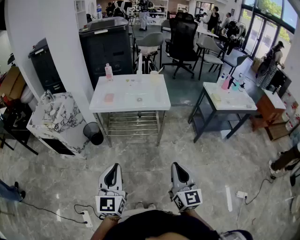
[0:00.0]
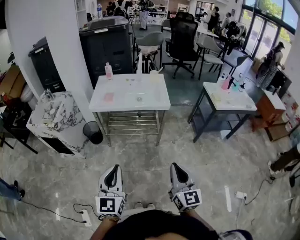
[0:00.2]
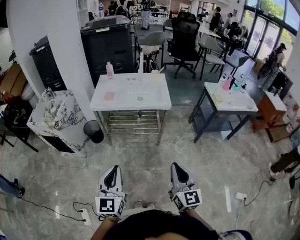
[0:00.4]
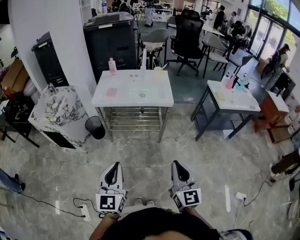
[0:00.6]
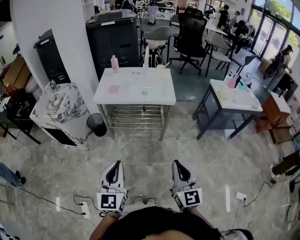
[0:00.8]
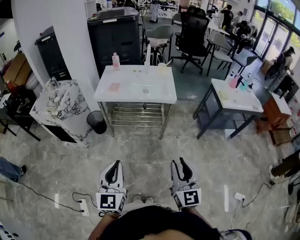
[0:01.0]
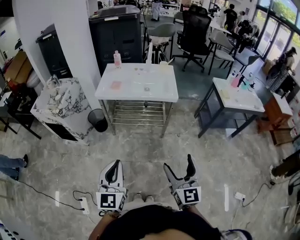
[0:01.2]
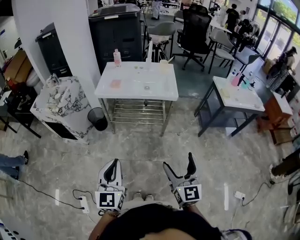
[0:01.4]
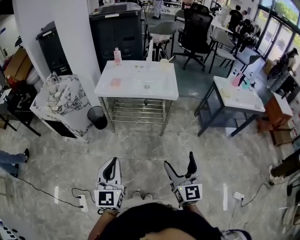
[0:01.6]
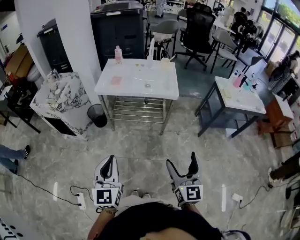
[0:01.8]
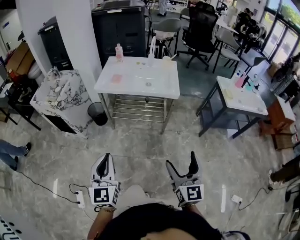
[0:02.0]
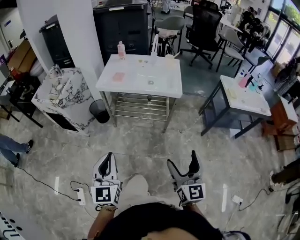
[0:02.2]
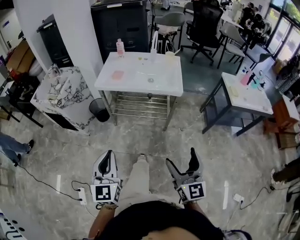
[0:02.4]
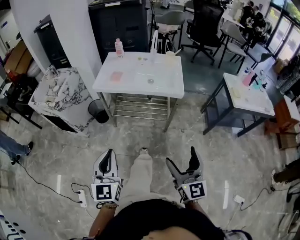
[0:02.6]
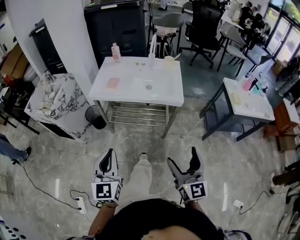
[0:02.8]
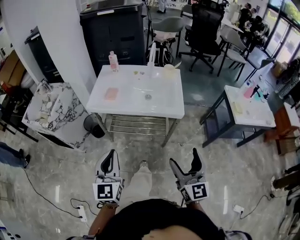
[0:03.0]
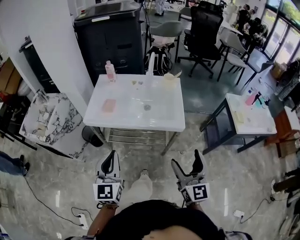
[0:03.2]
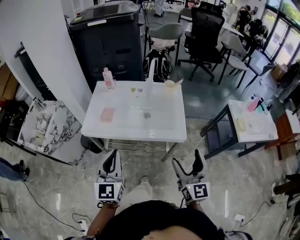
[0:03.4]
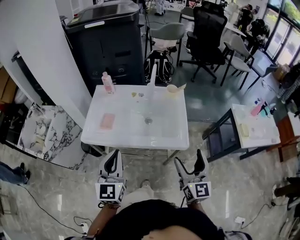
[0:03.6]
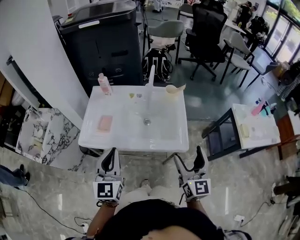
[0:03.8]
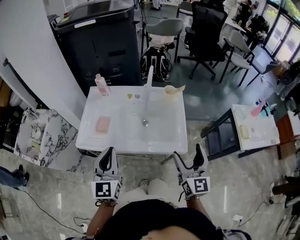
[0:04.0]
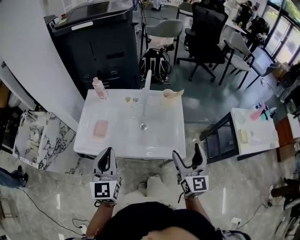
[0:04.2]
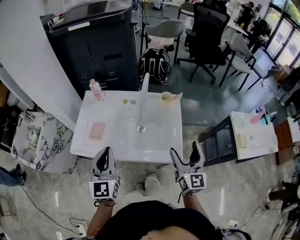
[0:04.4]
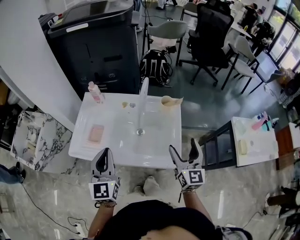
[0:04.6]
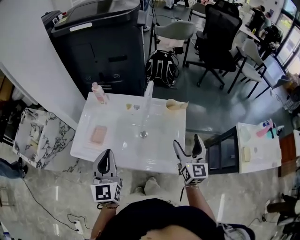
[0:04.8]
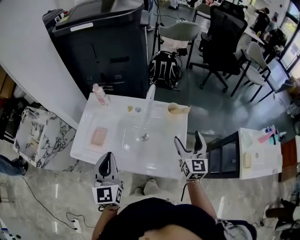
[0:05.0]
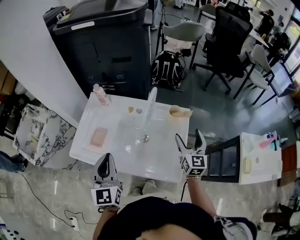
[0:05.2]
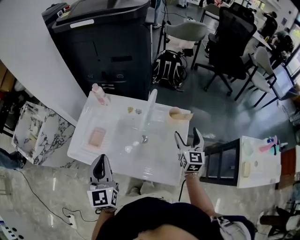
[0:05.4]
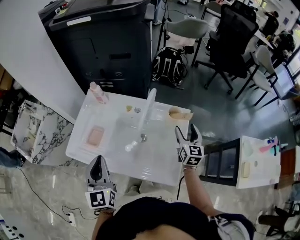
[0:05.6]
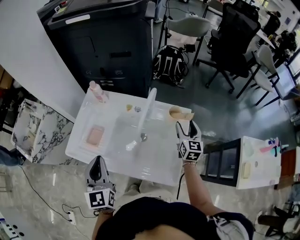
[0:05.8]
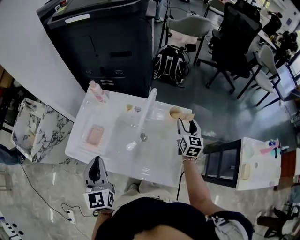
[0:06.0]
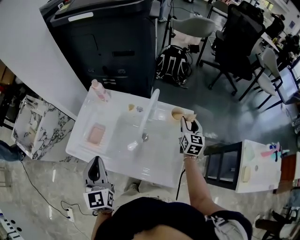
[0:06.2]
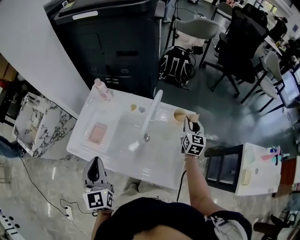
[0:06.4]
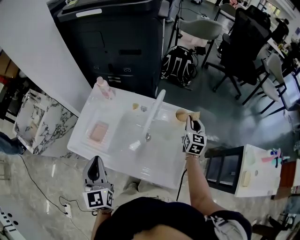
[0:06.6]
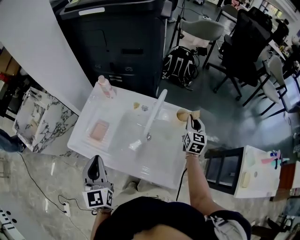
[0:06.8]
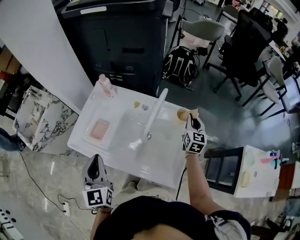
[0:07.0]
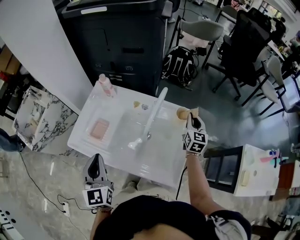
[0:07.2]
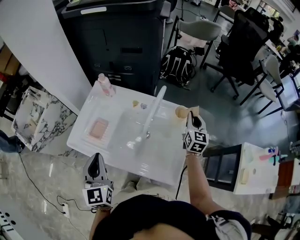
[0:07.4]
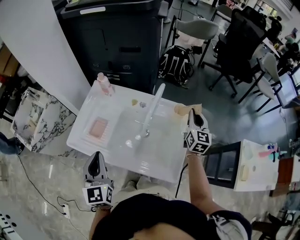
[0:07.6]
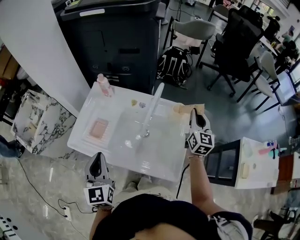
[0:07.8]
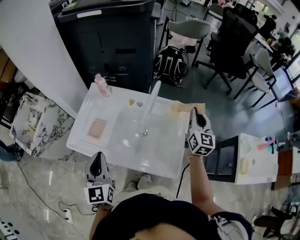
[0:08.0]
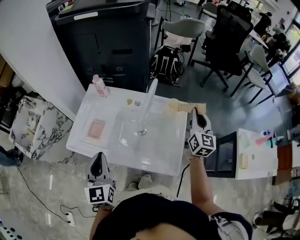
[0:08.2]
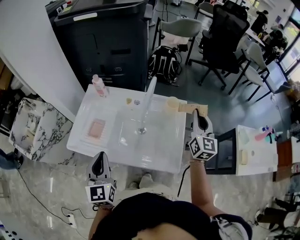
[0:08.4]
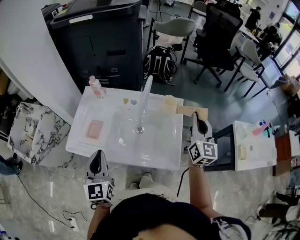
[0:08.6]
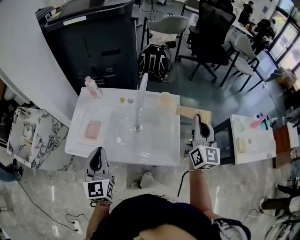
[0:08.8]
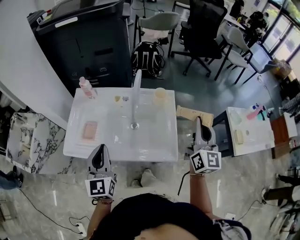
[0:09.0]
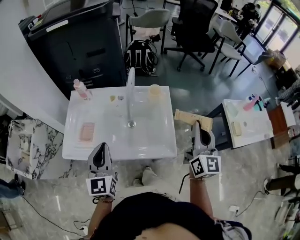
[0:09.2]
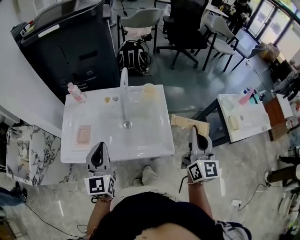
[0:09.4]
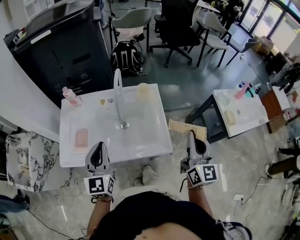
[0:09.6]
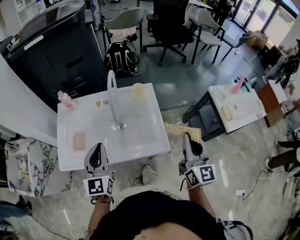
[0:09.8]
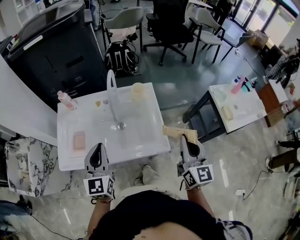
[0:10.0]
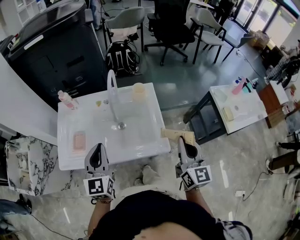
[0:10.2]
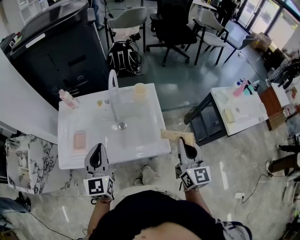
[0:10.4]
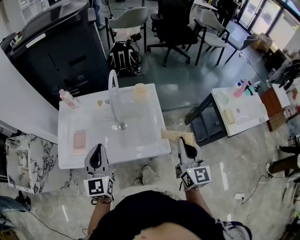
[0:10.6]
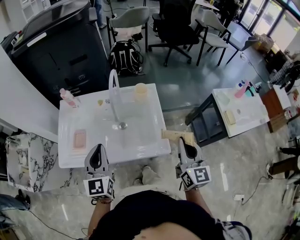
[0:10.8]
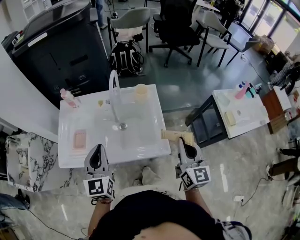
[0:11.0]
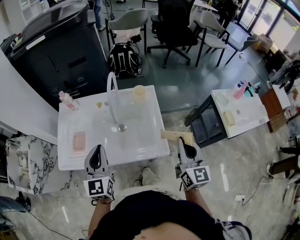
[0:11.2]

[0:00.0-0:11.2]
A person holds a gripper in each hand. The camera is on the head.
0:00.0 to 0:01.6: The right gripper opens its fingers.
0:01.6 to 0:03.2: Both grippers move forward, roughly 30 cm.
0:03.2 to 0:04.8: The grippers both shift forward by about 35 cm.
0:04.8 to 0:06.4: The right gripper goes some 25 cm forward and downward, and closes up.
0:06.4 to 0:08.0: The right gripper heads upward and backward, covering approximately 15 cm.
0:08.0 to 0:09.6: The right gripper is displaced backward by some 30 cm. The left gripper ends up approximately 5 cm from where it was, and turns by approximately 30 degrees.
0:09.6 to 0:11.2: The grippers make only small movements.

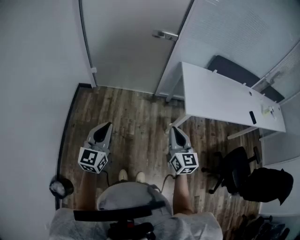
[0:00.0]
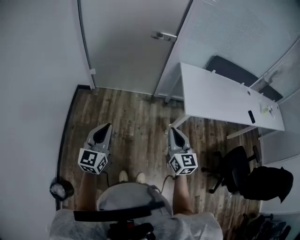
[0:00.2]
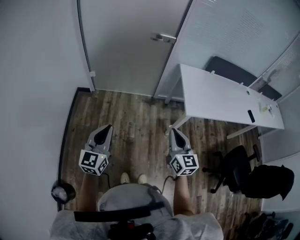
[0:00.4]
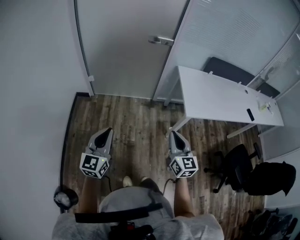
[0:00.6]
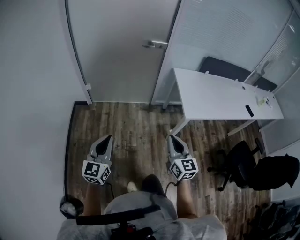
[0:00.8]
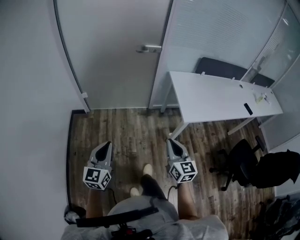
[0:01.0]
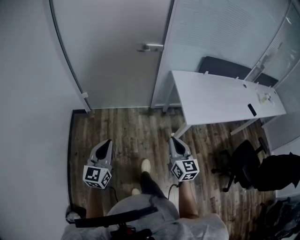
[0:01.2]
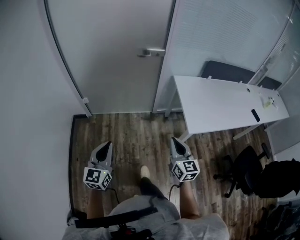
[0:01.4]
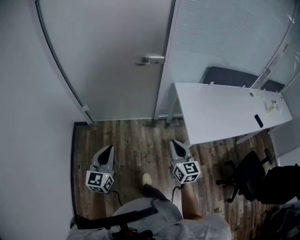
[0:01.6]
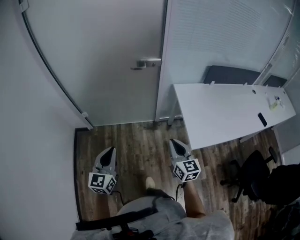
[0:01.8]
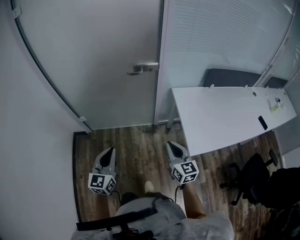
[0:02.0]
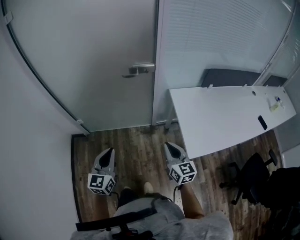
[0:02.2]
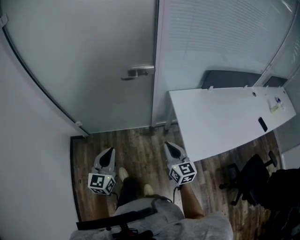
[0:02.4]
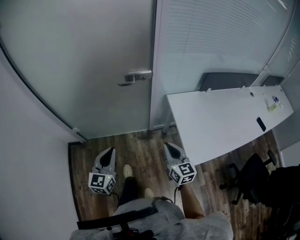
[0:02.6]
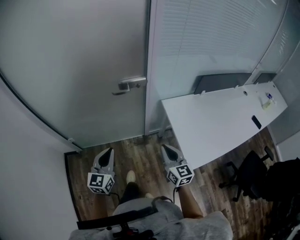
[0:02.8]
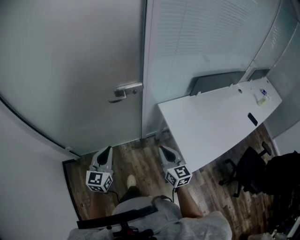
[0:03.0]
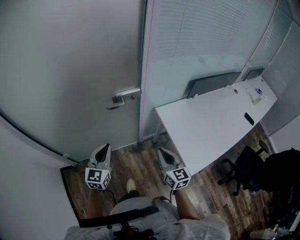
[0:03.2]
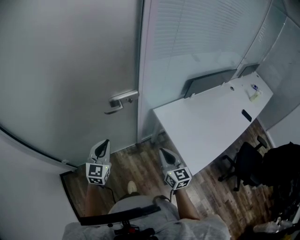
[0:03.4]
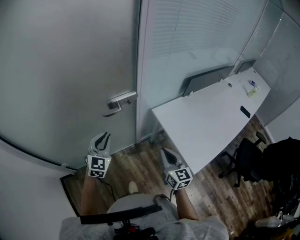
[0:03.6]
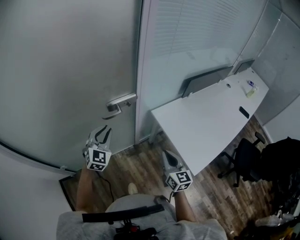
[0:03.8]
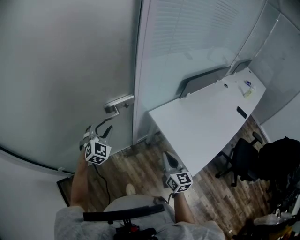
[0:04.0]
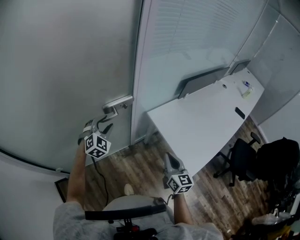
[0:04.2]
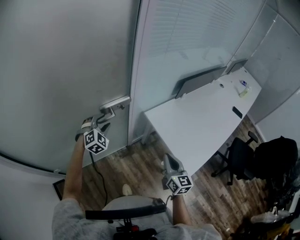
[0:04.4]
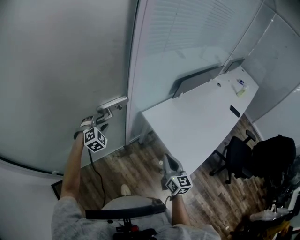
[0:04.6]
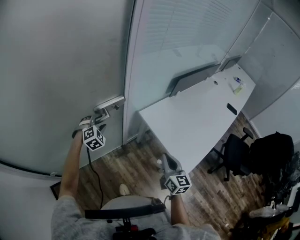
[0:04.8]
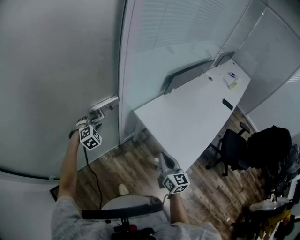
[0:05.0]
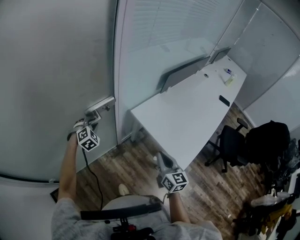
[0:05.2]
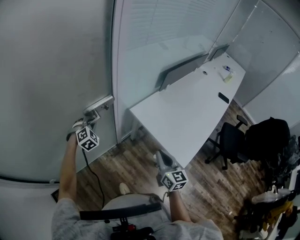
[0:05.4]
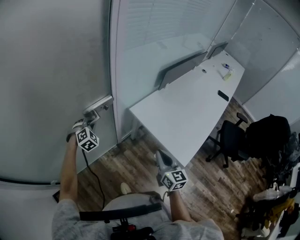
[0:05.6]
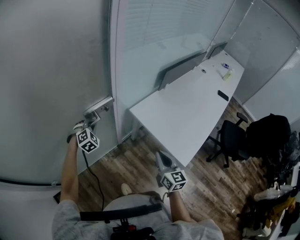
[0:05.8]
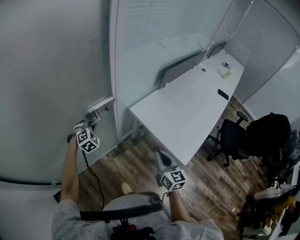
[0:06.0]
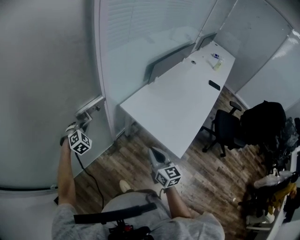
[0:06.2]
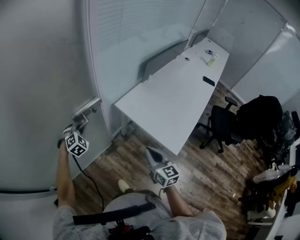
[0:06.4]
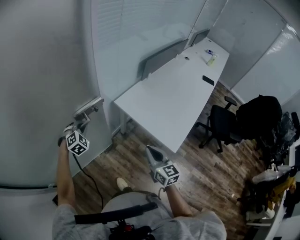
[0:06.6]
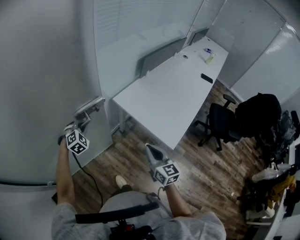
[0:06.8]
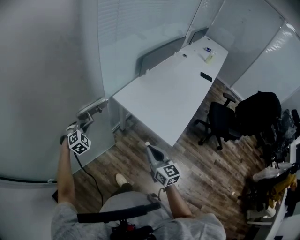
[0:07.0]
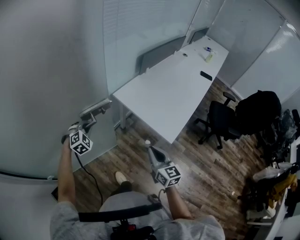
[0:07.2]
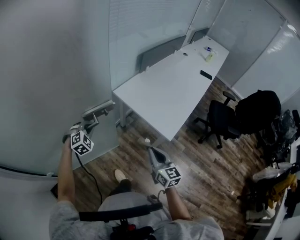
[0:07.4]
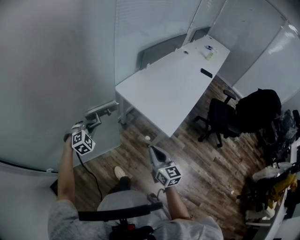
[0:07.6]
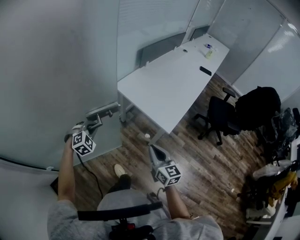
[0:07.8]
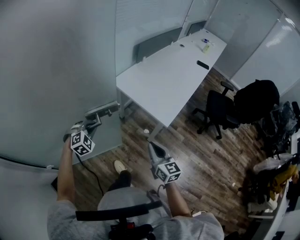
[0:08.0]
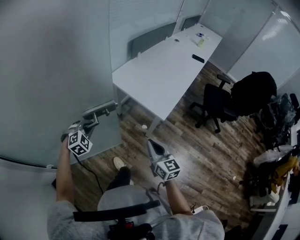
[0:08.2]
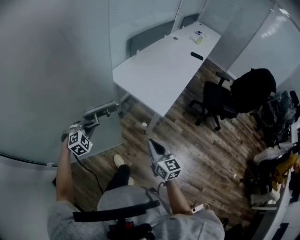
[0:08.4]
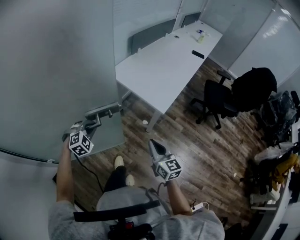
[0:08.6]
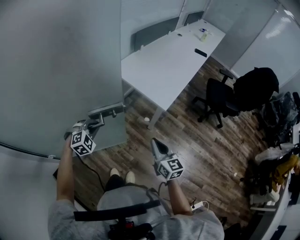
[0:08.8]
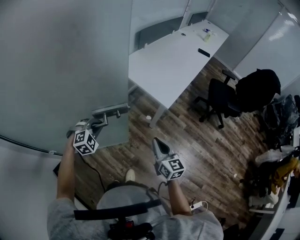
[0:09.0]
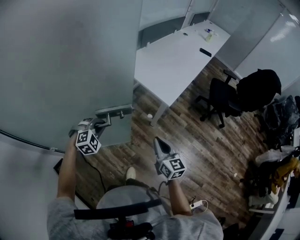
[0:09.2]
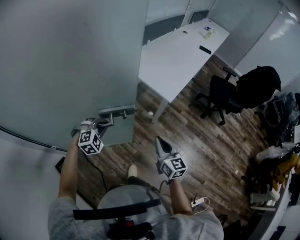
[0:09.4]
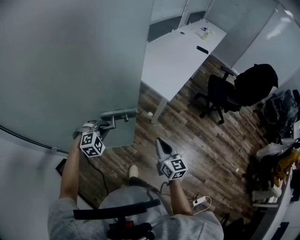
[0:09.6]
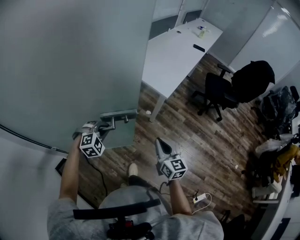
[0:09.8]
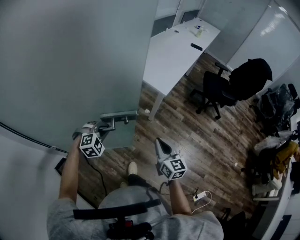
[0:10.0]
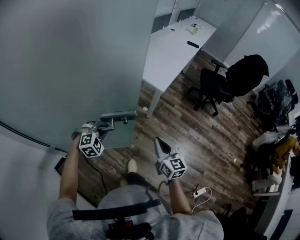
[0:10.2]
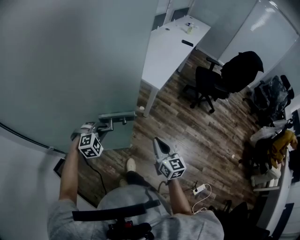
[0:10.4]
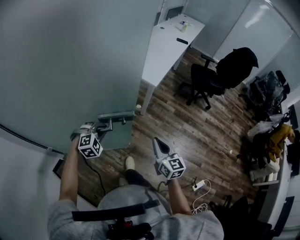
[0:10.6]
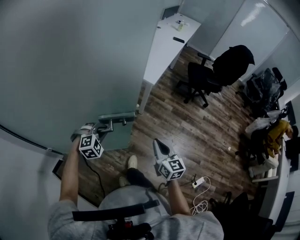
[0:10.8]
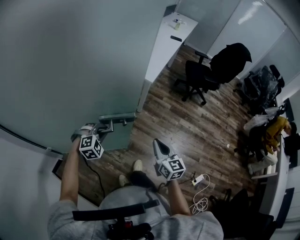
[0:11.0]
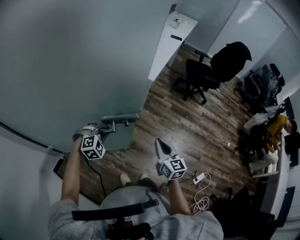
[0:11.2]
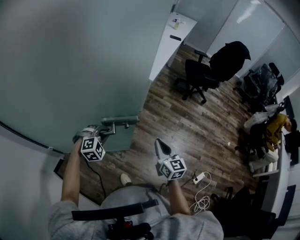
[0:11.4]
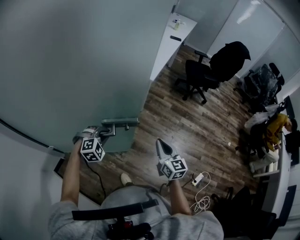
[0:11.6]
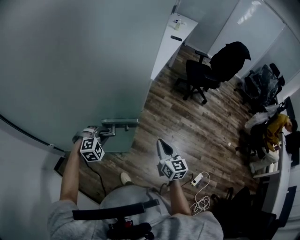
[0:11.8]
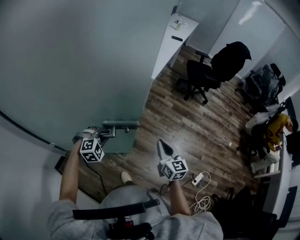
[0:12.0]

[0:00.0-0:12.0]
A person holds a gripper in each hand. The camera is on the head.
0:00.0 to 0:01.6: The two grippers go roughly 20 cm forward.
0:01.6 to 0:03.0: Both grippers move forward, about 30 cm.
0:03.0 to 0:04.4: The left gripper is displaced forward by roughly 30 cm, rotates around the line of its fingers by roughly 60 degrees, clockwise from behind, and opens; the right gripper ends up roughly 5 cm from where it was, and turns by approximately 20 degrees.
0:04.4 to 0:06.0: The left gripper shifts approximately 5 cm downward, and closes its fingers.
0:06.0 to 0:07.6: The right gripper is displaced backward by some 15 cm. Meanwhile the left gripper shifts some 20 cm backward and to the right.
0:07.6 to 0:09.0: Both grippers move backward, about 15 cm.
0:09.0 to 0:10.4: The two grippers go about 15 cm backward.
0:10.4 to 0:12.0: Both grippers move backward, some 10 cm.

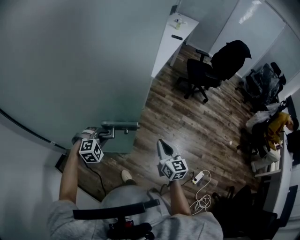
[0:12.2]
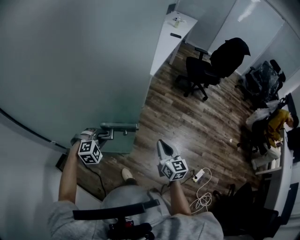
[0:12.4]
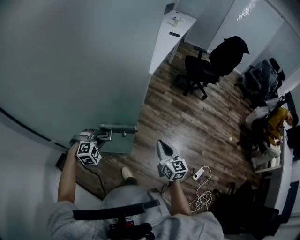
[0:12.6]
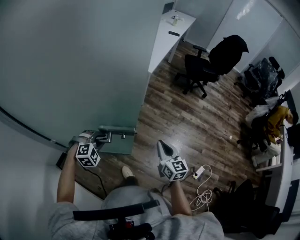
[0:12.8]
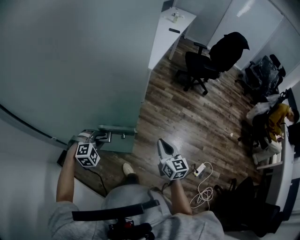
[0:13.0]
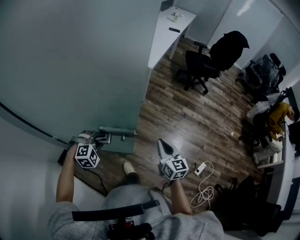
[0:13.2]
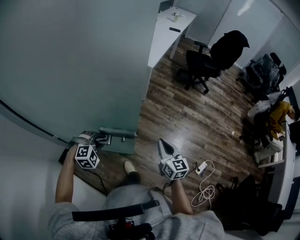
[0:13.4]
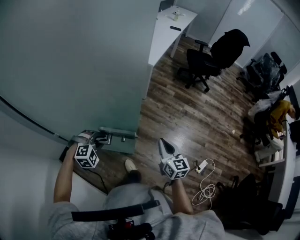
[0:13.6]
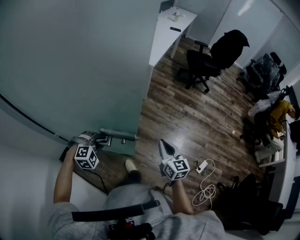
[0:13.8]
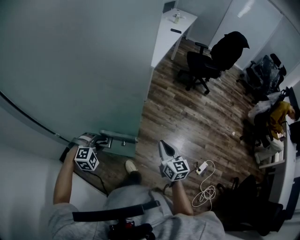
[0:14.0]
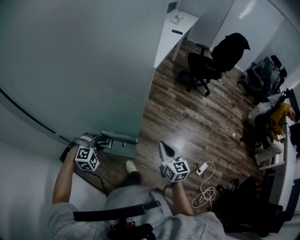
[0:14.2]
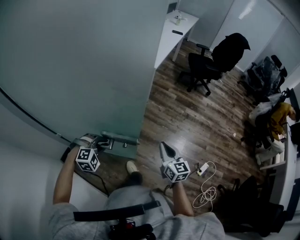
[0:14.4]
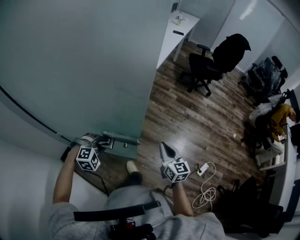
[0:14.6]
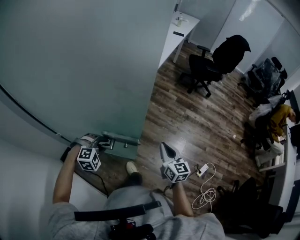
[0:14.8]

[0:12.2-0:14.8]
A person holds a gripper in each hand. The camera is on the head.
0:12.2 to 0:13.4: Both grippers move backward, some 10 cm.
0:13.4 to 0:14.8: The grippers stay close to where they were, moving slightly.
